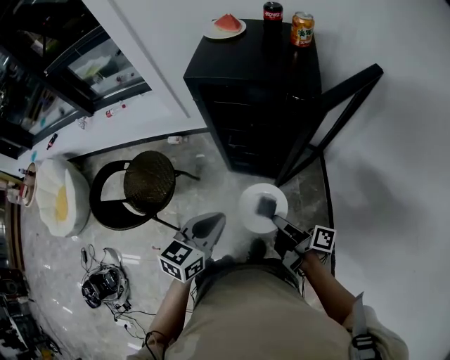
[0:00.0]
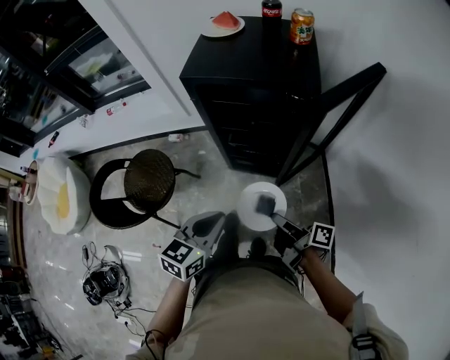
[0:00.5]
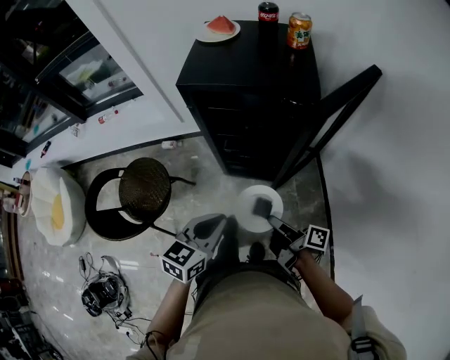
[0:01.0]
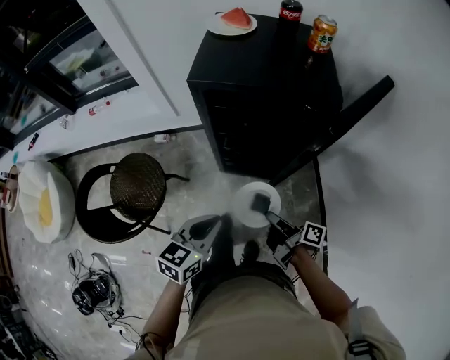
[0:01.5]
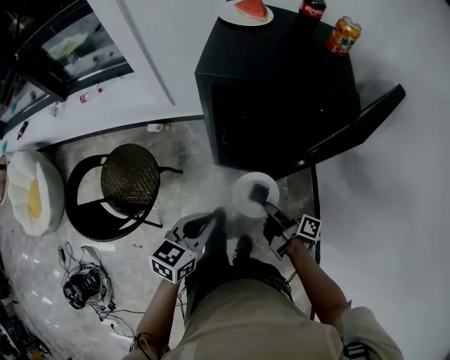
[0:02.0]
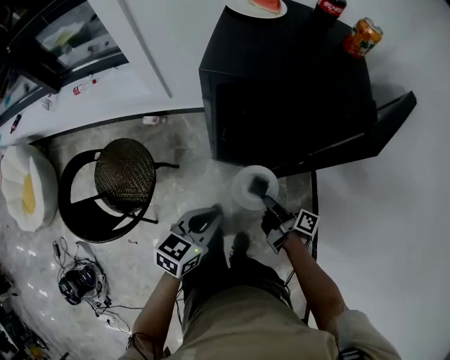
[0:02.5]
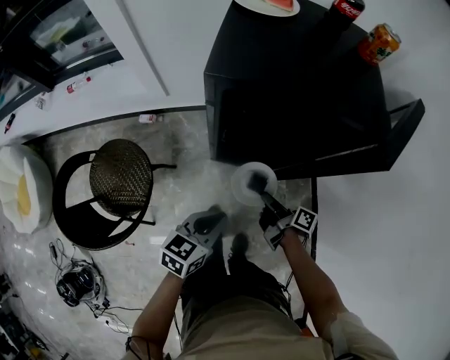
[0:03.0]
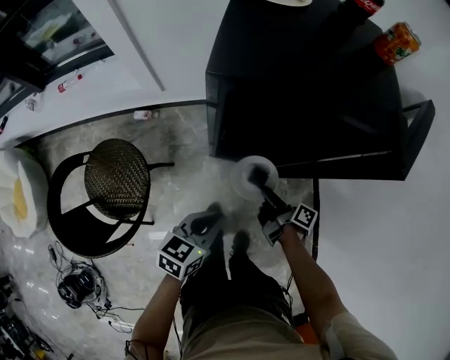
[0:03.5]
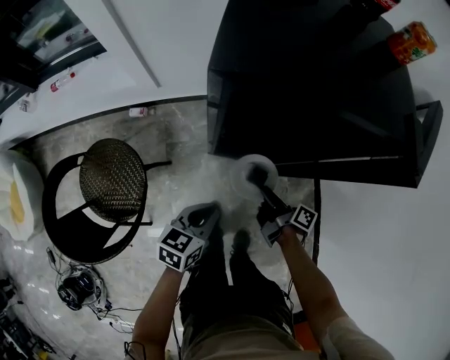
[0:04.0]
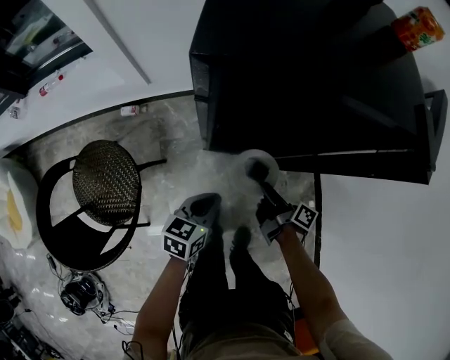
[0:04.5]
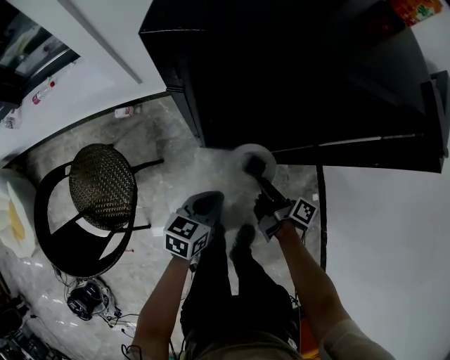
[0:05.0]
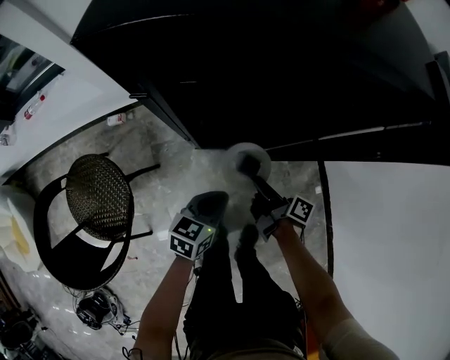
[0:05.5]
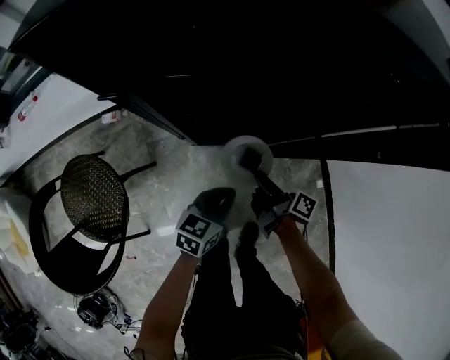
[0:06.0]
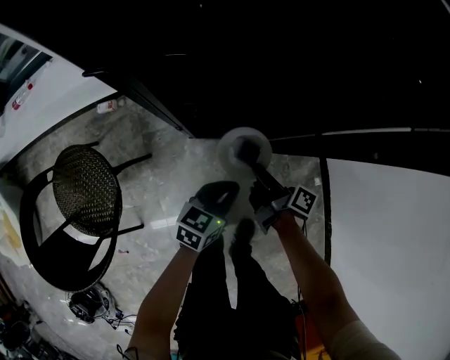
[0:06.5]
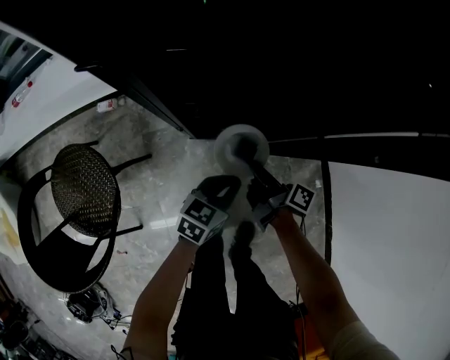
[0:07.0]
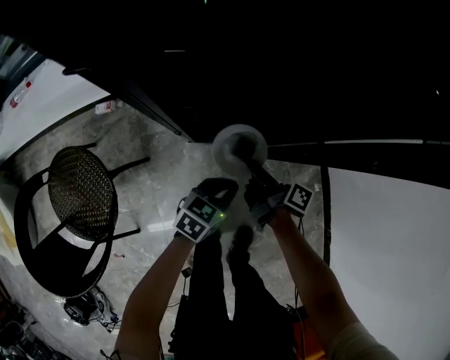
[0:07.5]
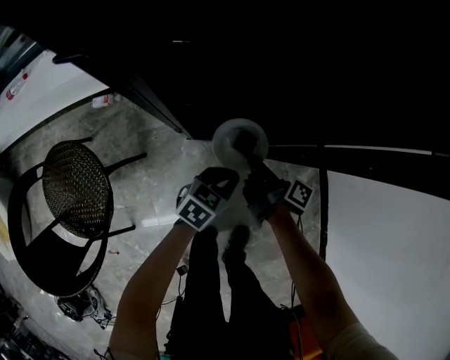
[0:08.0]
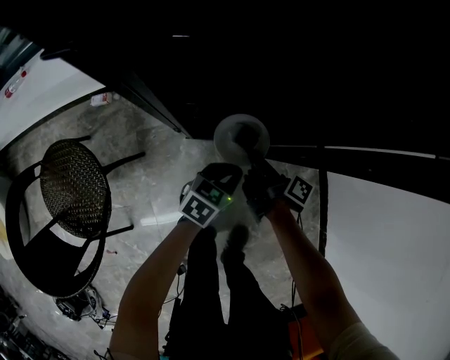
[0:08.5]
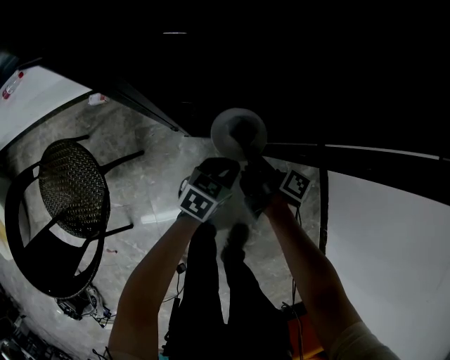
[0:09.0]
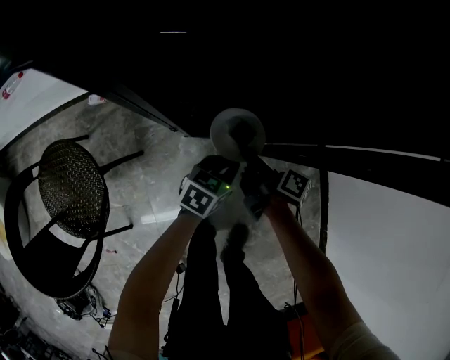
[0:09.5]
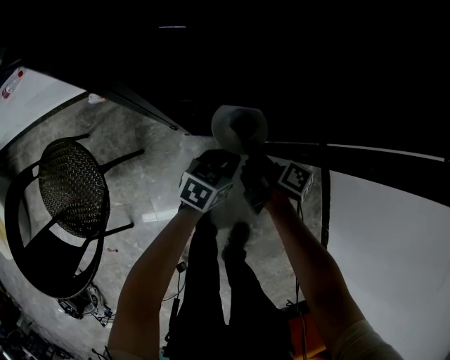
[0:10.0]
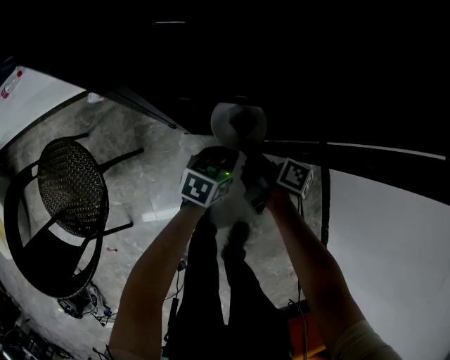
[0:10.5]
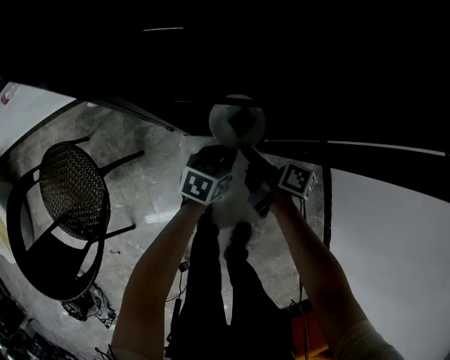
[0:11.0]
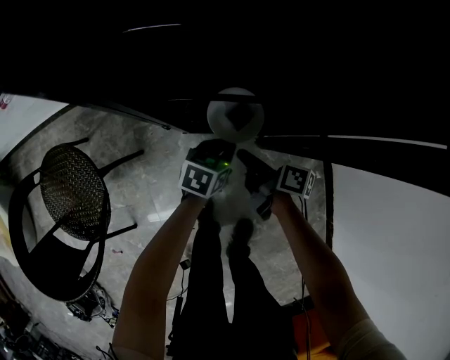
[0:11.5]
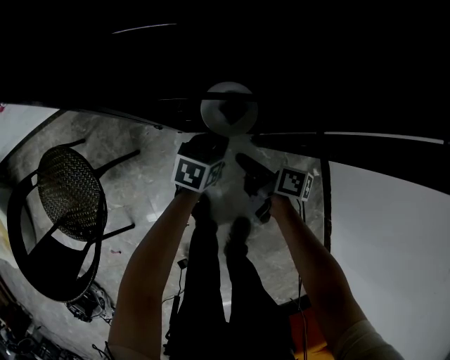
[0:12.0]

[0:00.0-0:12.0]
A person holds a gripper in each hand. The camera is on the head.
0:00.0 to 0:02.0: The left gripper changes place by about 10 cm.
0:02.0 to 0:04.0: The left gripper heads downward, covering roughly 15 cm.
0:04.0 to 0:06.0: The left gripper is displaced downward by roughly 15 cm.
0:06.0 to 0:08.0: The left gripper goes some 10 cm downward.

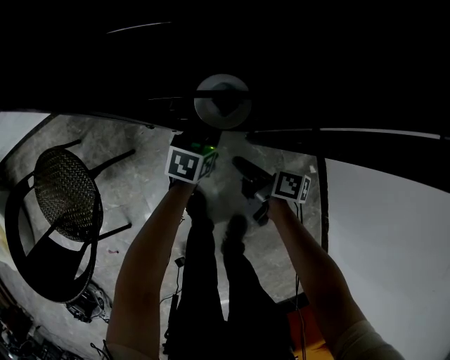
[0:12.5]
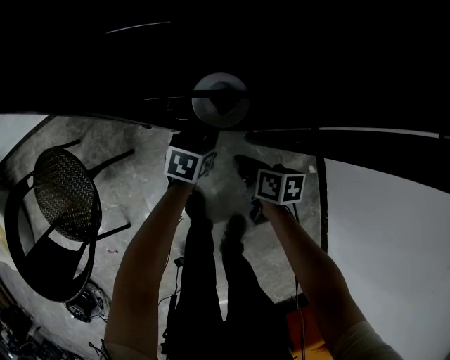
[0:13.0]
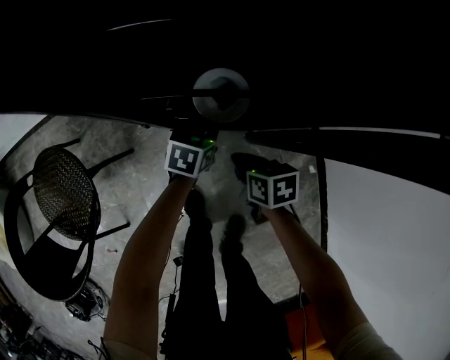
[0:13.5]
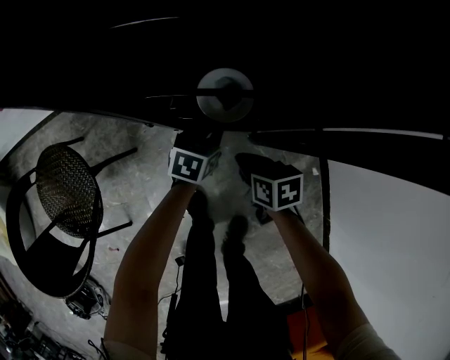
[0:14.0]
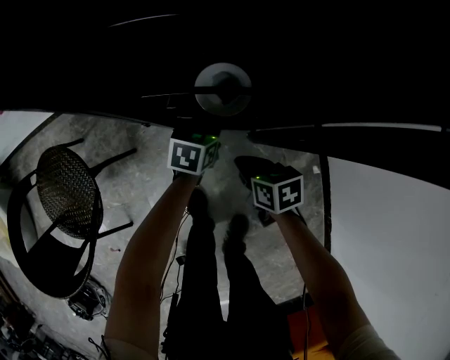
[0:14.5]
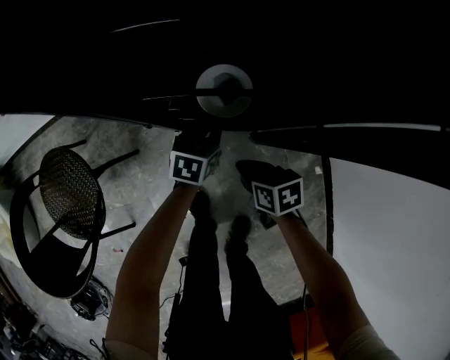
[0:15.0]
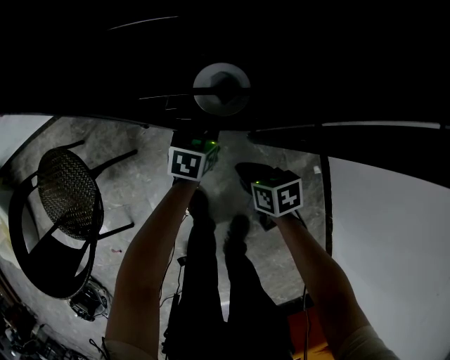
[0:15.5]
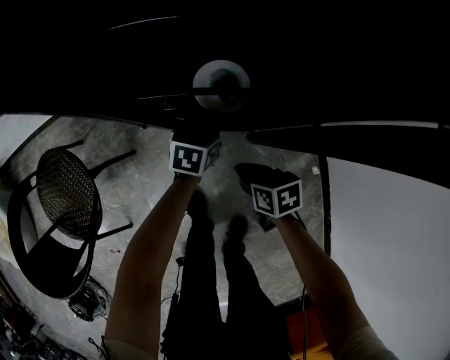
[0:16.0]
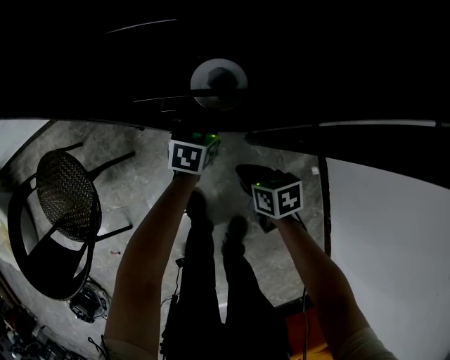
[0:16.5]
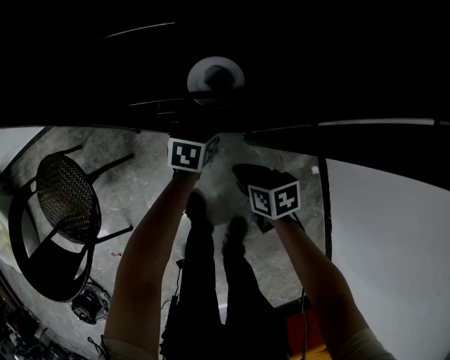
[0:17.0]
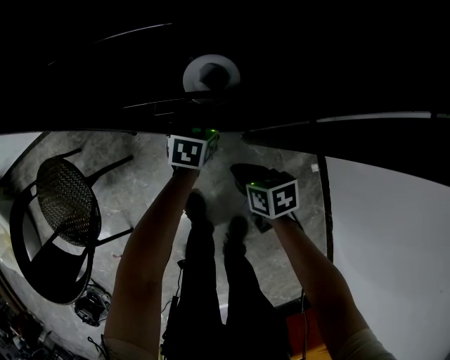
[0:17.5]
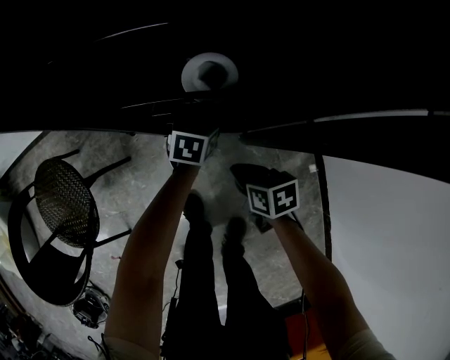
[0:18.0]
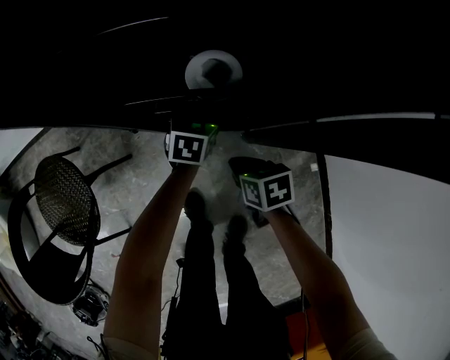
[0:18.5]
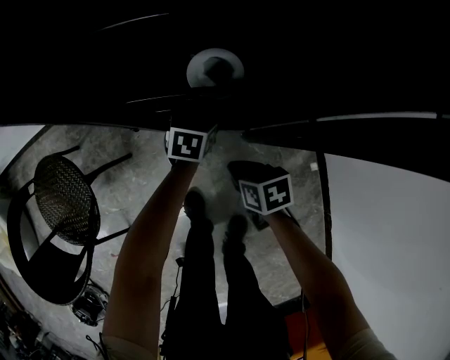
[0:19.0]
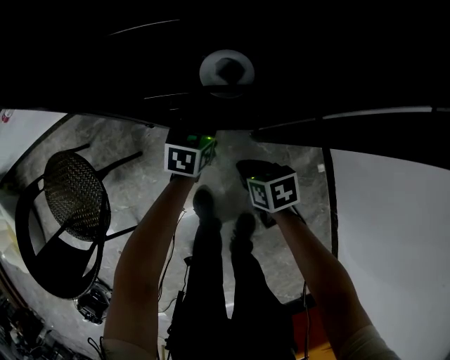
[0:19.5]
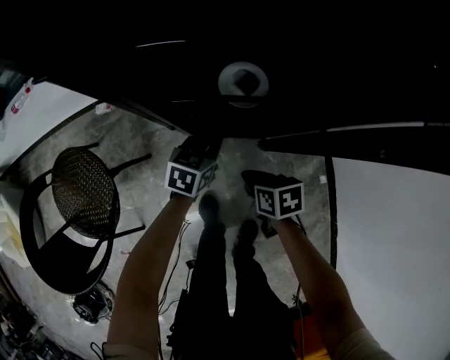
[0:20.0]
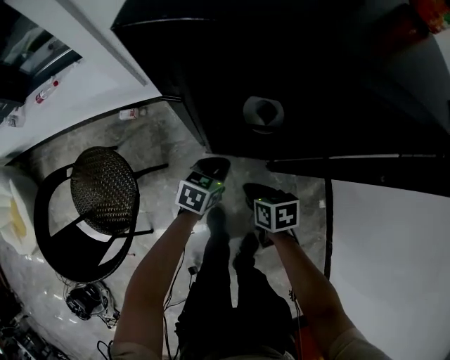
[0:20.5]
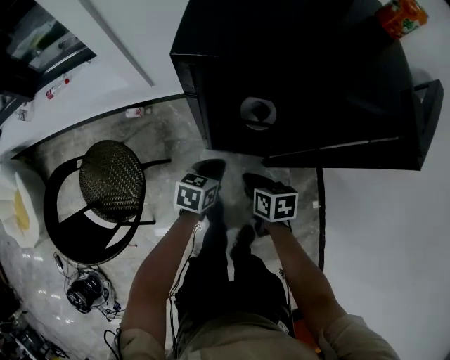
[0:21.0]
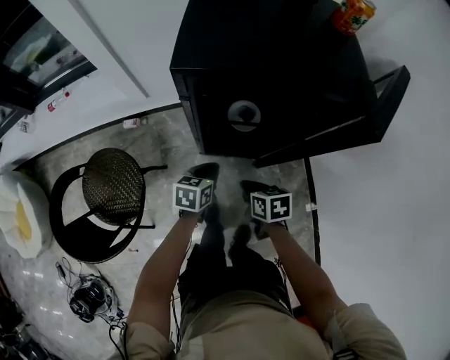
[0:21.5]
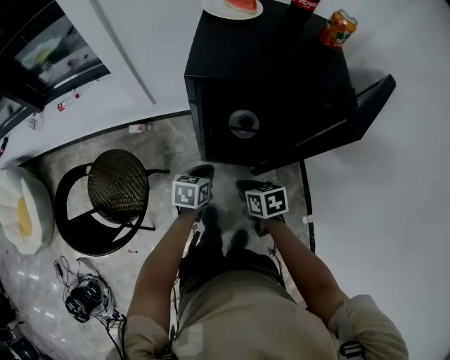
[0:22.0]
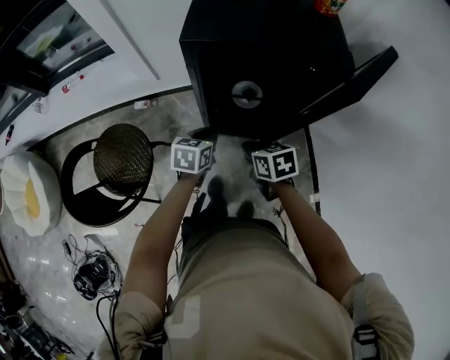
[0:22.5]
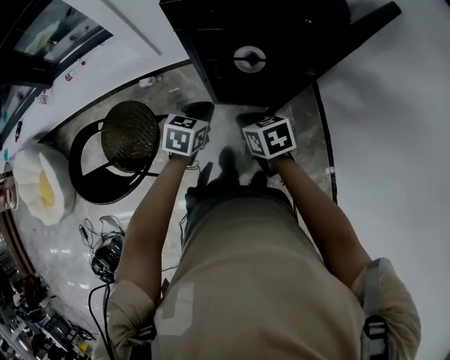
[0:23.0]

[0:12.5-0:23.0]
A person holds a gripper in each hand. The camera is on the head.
0:19.0 to 0:21.0: The left gripper shifts by about 25 cm.
0:21.0 to 0:23.0: The left gripper moves upward, roughly 15 cm.

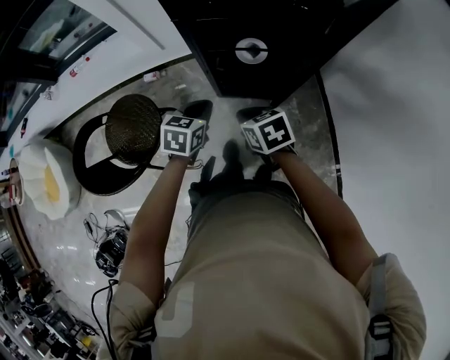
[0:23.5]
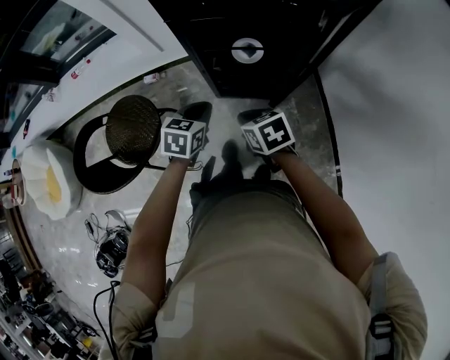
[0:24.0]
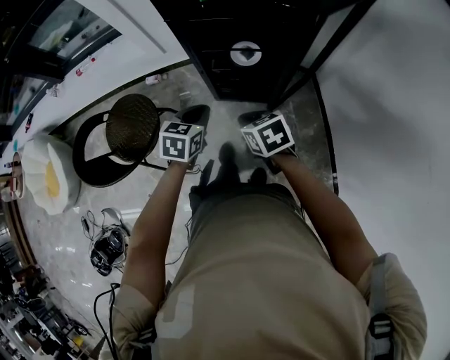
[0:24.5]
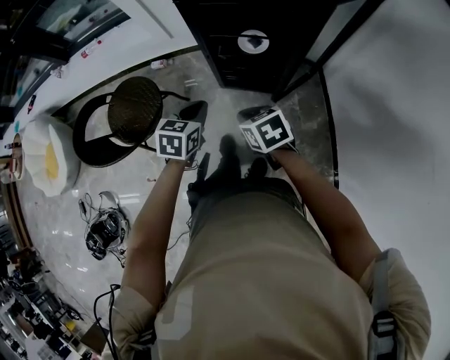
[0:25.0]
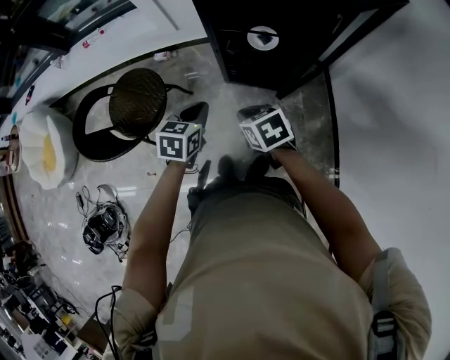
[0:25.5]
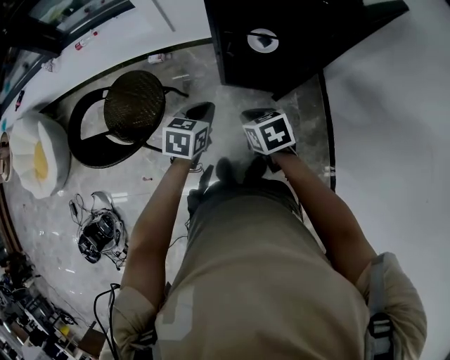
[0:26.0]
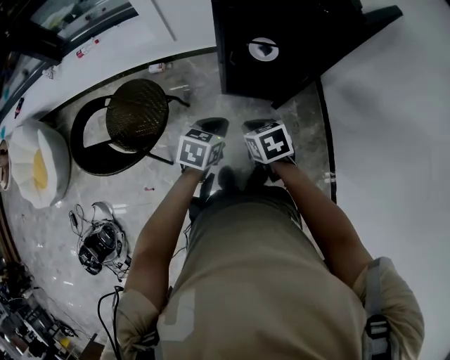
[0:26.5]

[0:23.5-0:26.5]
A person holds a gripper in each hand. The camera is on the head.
0:23.5 to 0:25.0: The left gripper ends up some 10 cm from where it was.
0:25.0 to 0:26.5: The left gripper moves approximately 5 cm.

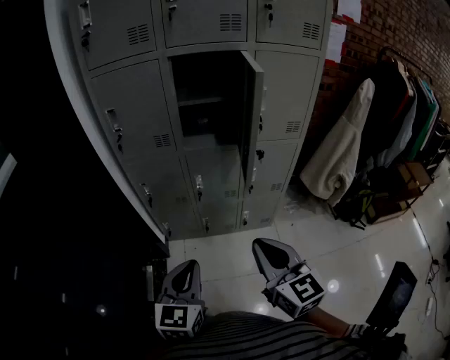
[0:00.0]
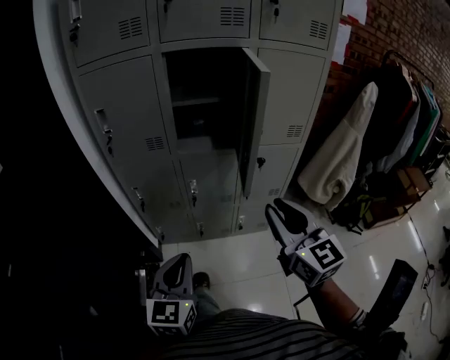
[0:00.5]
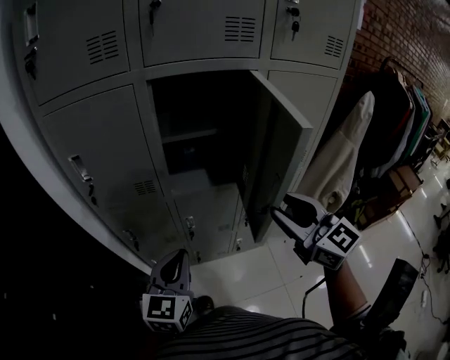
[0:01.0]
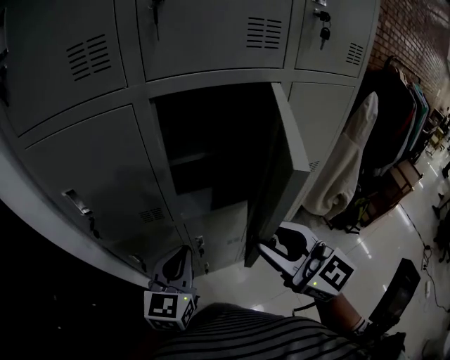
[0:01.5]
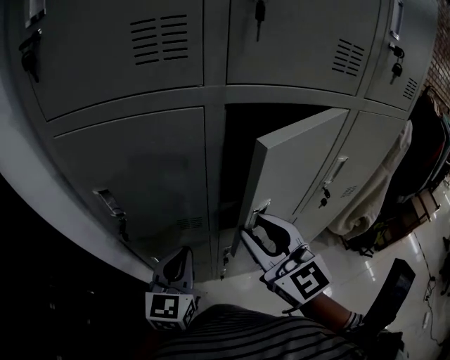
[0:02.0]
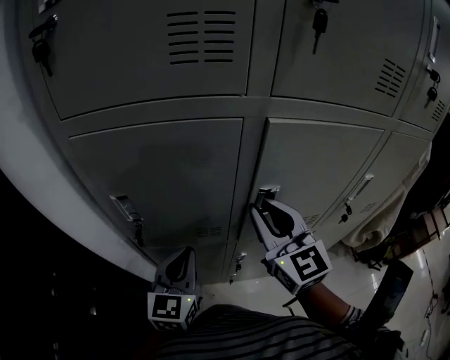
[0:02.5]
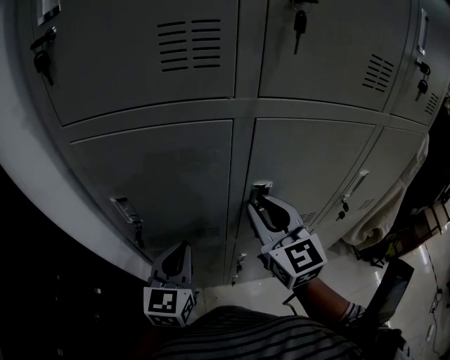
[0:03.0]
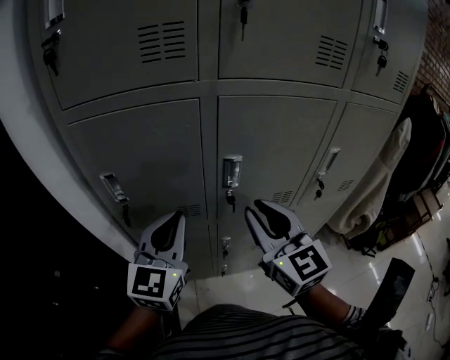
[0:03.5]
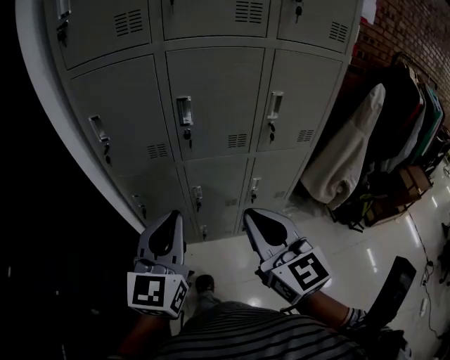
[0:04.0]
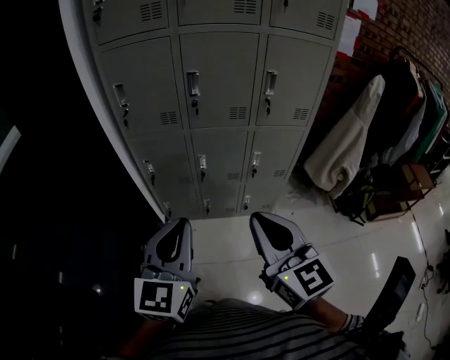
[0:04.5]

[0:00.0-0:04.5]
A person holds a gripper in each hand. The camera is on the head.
0:00.0 to 0:02.0: Both grippers are carried forward, about 40 cm. The right gripper opens up.
0:02.0 to 0:04.5: The pair of grippers is taken backward, roughly 40 cm. The right gripper closes its fingers.
